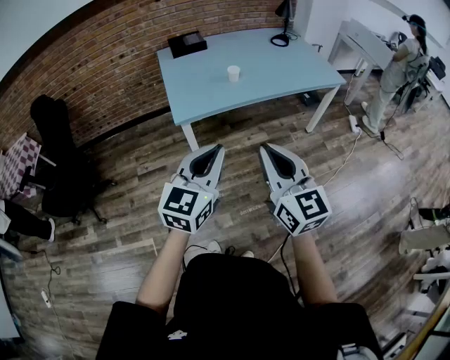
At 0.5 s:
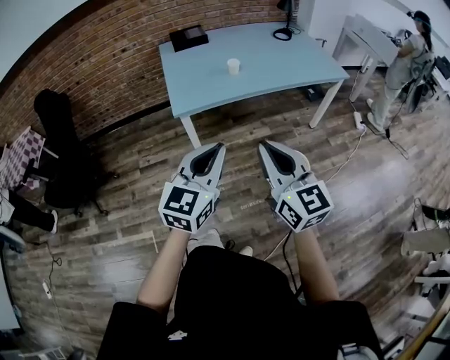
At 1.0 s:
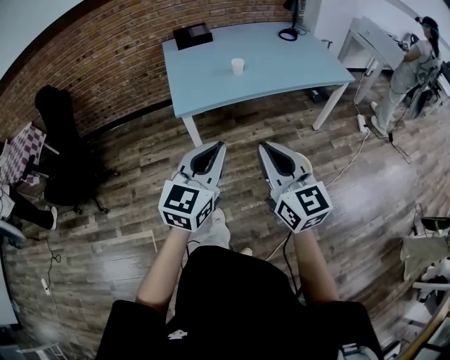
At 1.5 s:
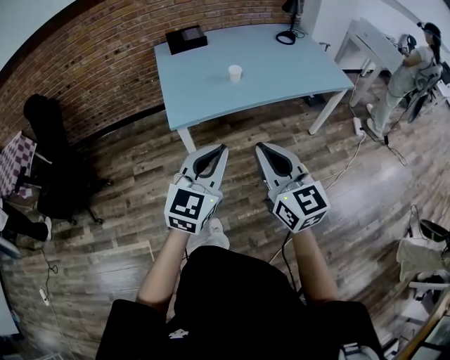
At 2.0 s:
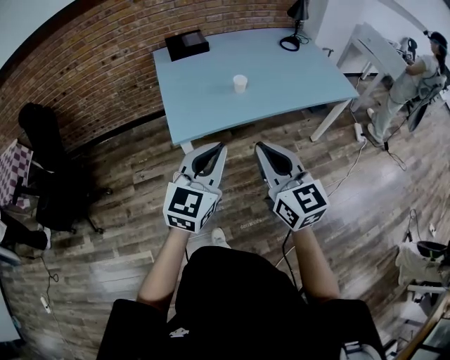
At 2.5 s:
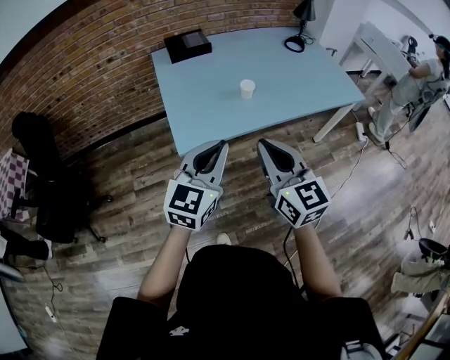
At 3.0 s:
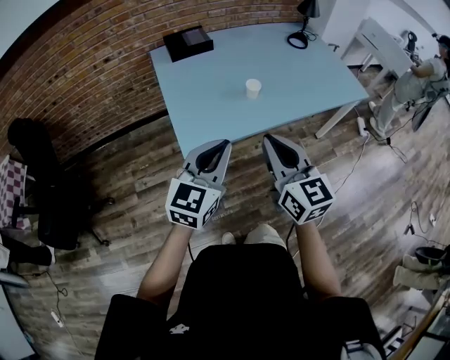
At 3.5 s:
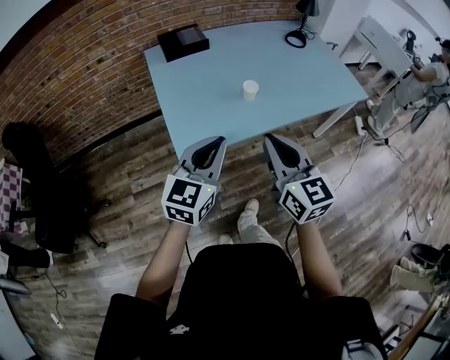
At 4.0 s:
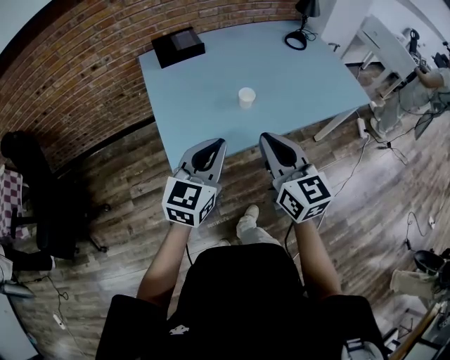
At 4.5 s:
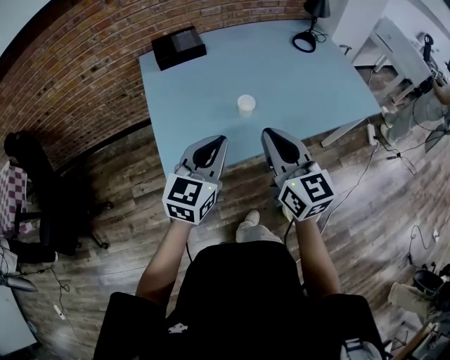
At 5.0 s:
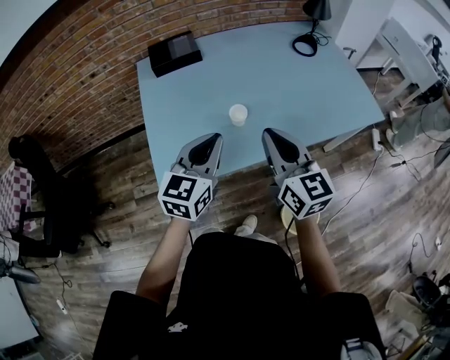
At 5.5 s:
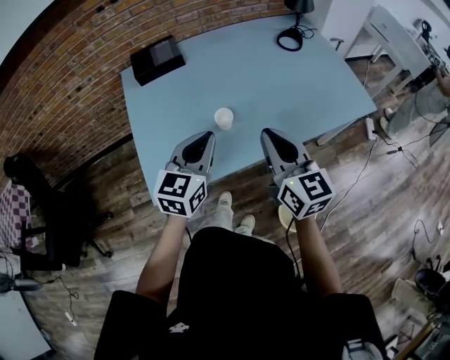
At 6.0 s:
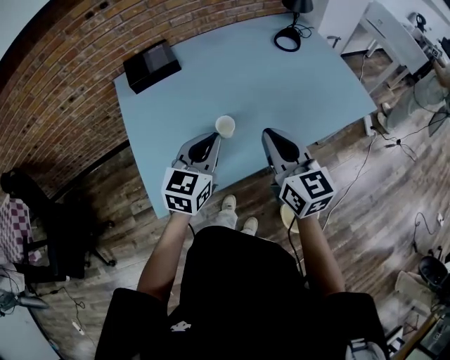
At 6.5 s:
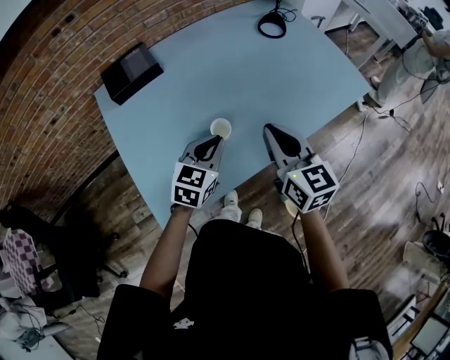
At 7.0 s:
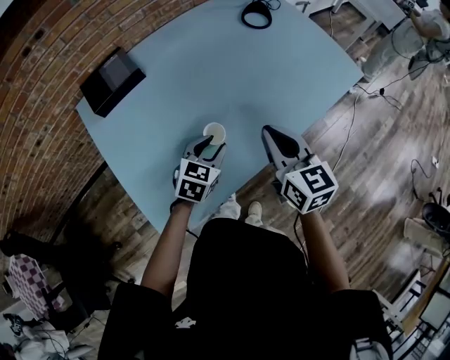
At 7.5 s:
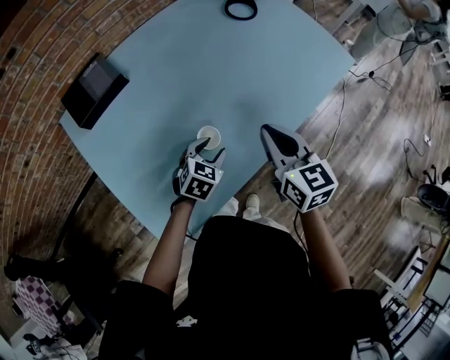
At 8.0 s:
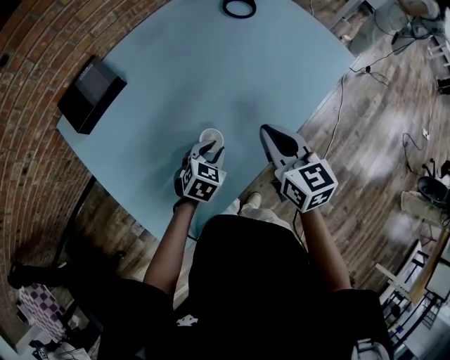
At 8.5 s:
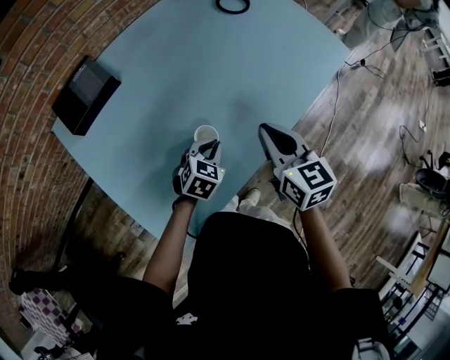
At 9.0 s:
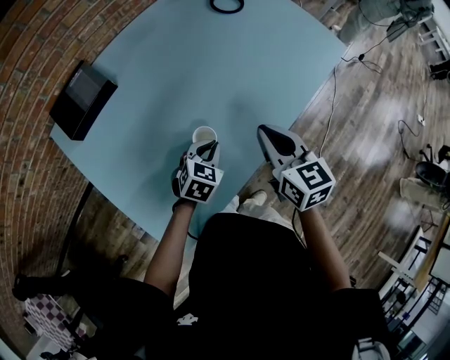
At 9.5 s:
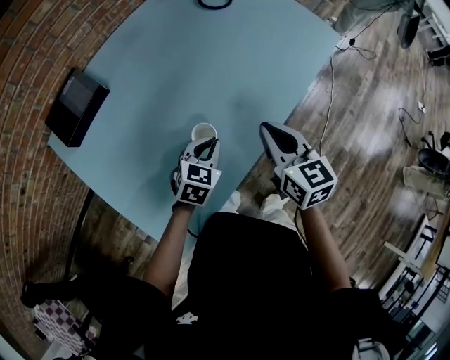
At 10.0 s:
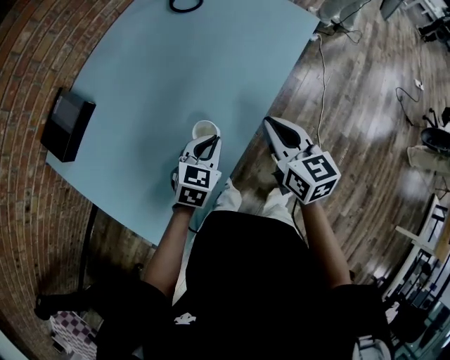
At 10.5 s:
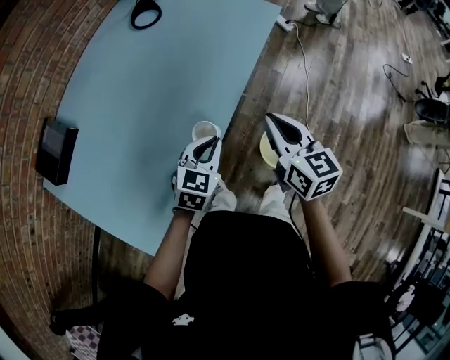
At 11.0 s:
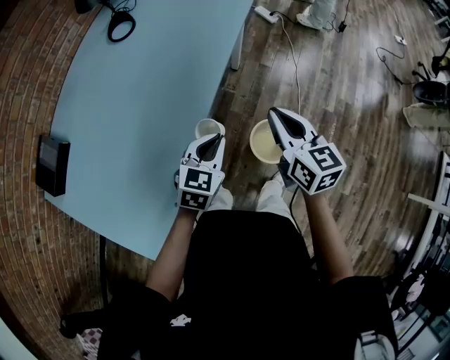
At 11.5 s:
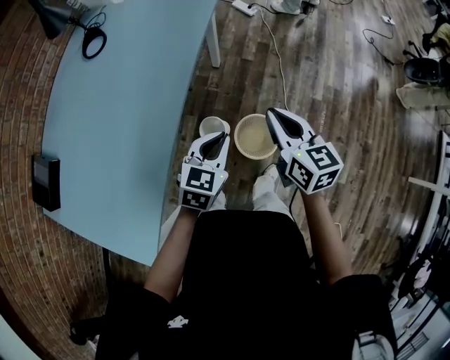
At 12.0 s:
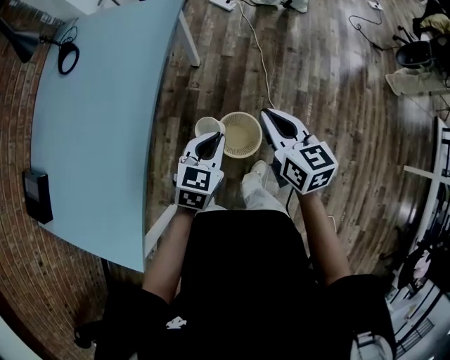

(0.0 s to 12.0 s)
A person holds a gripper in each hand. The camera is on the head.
0.0 s - 2.0 s: Both grippers move forward, some 15 cm.
2.0 s - 4.0 s: Both grippers move forward, some 20 cm.
4.0 s - 6.0 s: The two grippers go about 20 cm forward and to the right.
6.0 s - 8.0 s: The left gripper heads downward and forward, covering about 25 cm, changes its angle by some 40 degrees, and opens; the right gripper is displaced forward and downward by some 15 cm, and changes its angle by about 20 degrees.
8.0 s - 10.0 s: The right gripper moves to the right, some 10 cm; the left gripper heads to the right and upward, covering approximately 10 cm, and closes its fingers.
10.0 s - 12.0 s: Both grippers move to the right, approximately 40 cm. The right gripper turns by some 20 degrees.

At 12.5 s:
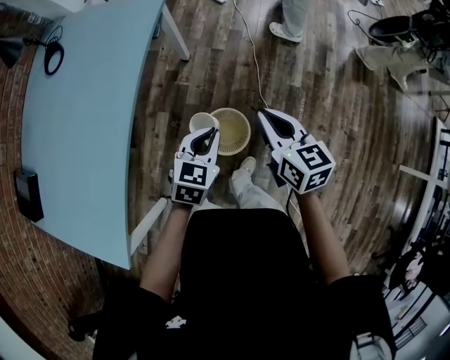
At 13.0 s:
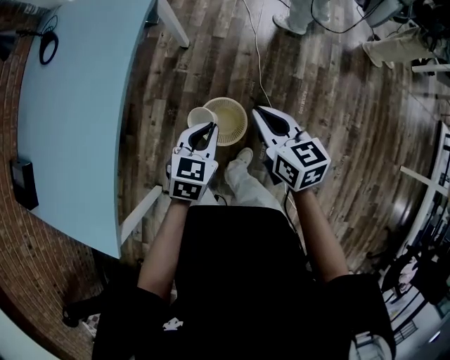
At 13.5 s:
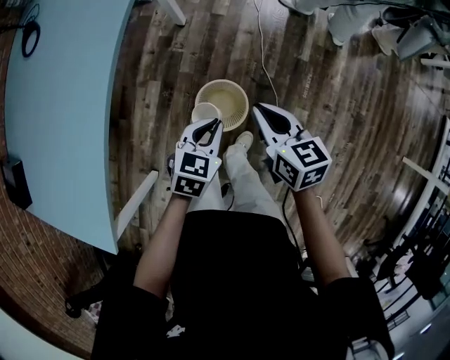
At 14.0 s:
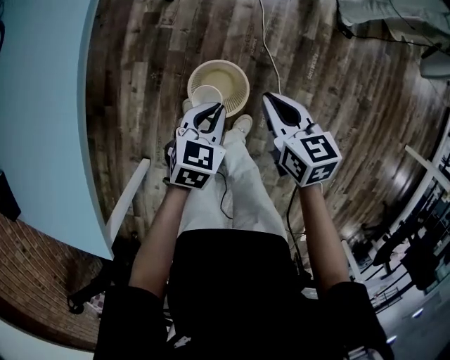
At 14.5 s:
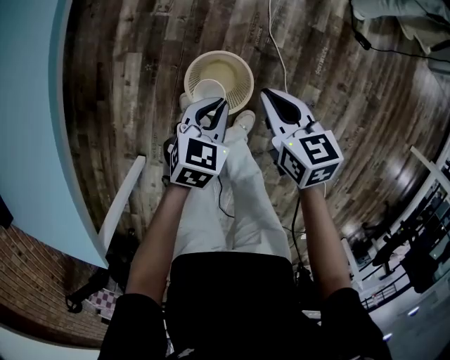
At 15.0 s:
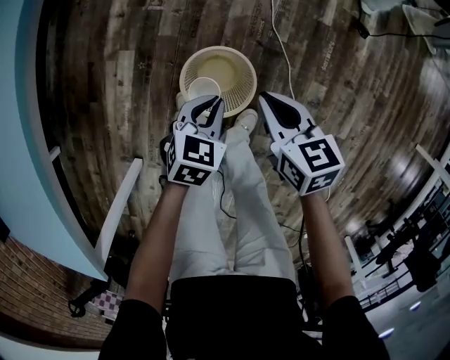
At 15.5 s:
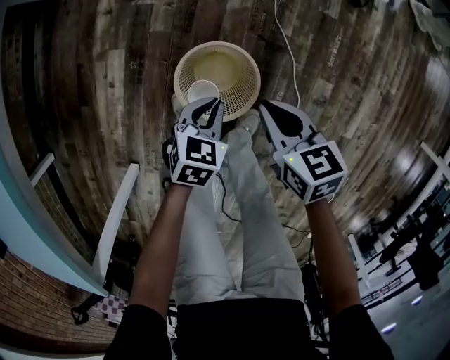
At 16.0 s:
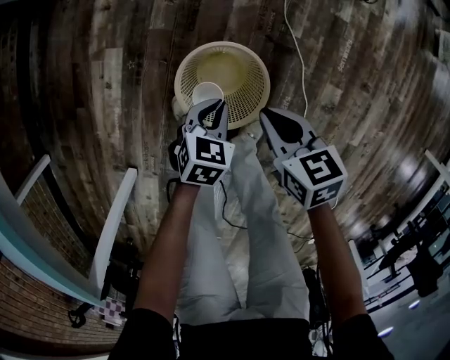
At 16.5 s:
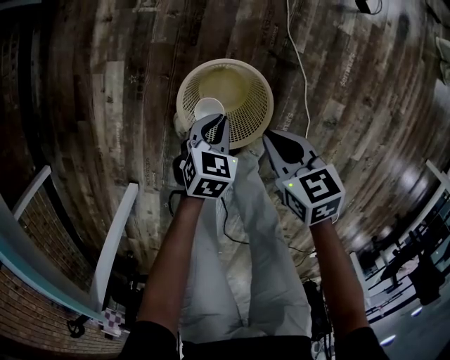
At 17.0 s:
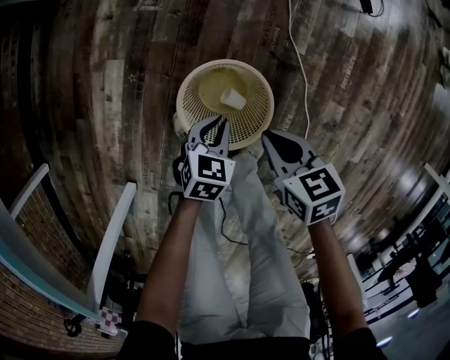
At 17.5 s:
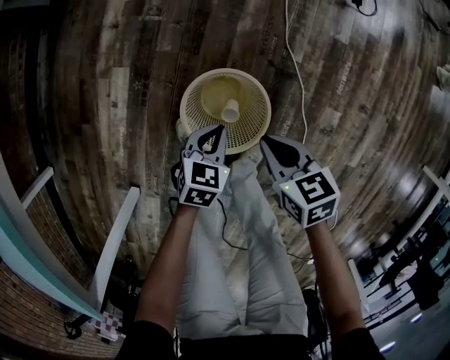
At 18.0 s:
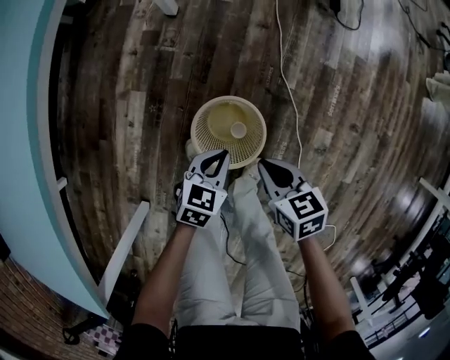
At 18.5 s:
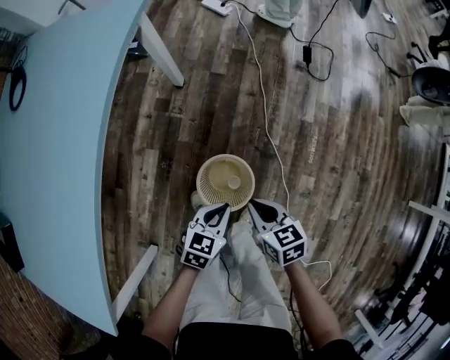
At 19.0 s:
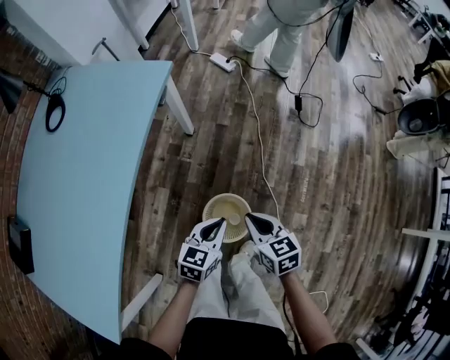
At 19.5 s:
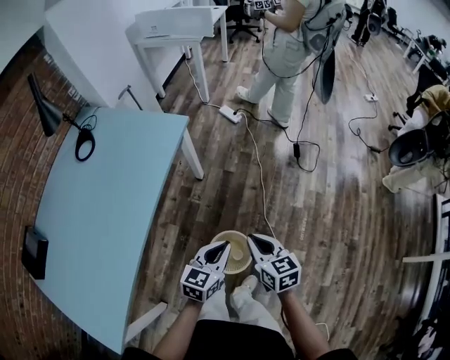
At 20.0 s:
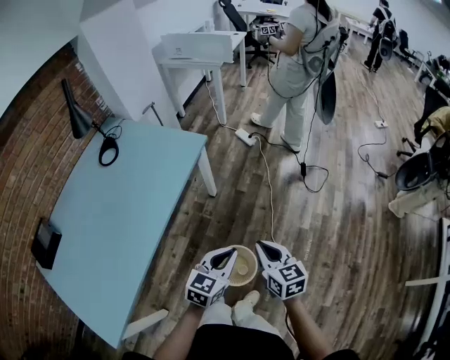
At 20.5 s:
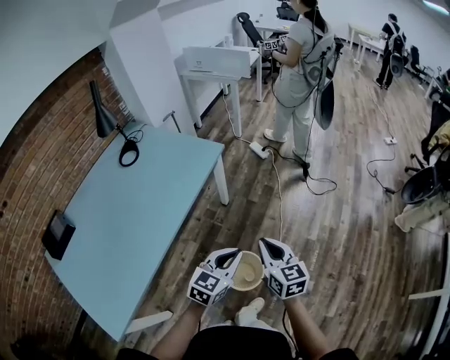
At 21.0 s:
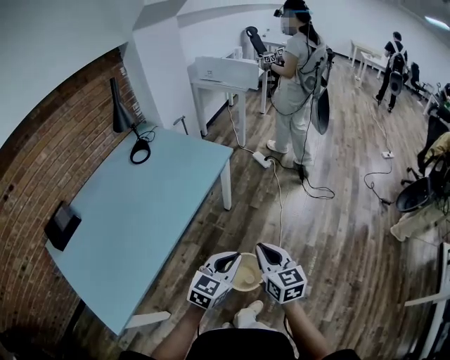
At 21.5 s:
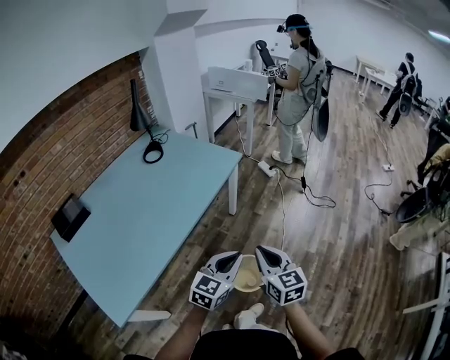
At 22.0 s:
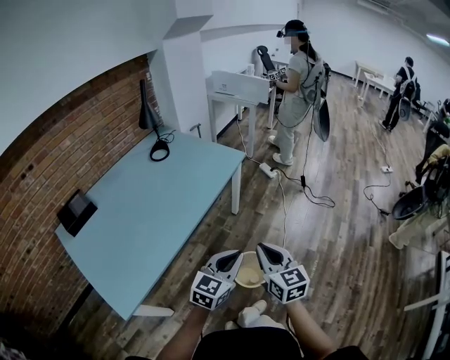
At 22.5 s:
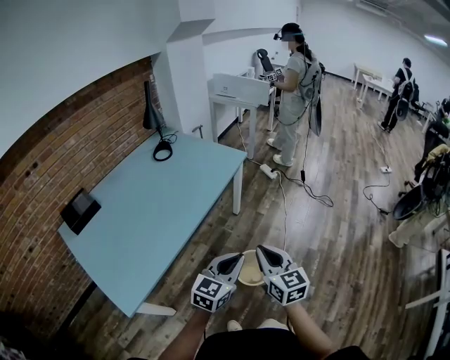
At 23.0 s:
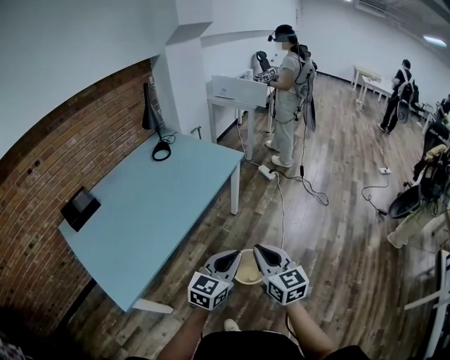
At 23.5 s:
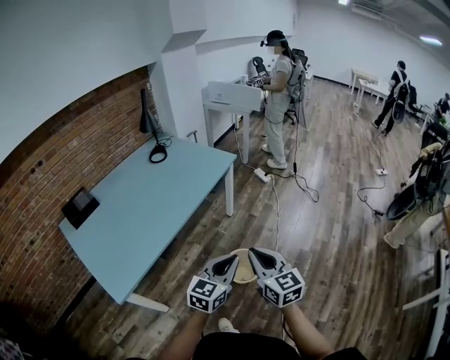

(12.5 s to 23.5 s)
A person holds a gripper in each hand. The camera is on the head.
12.5 s - 14.5 s: The grippers both shift downward by roughly 30 cm.
14.5 s - 16.0 s: The grippers both shift downward by roughly 20 cm.
16.0 s - 18.0 s: The left gripper travels upward by some 10 cm, while the right gripper goes some 5 cm upward.
18.0 s - 20.0 s: Both grippers move upward, roughly 40 cm. The left gripper turns by about 30 degrees, while the right gripper rotates roughly 30 degrees.
20.0 s - 21.5 s: Both grippers move backward, upward and to the left, roughly 20 cm.
21.5 s - 23.5 s: Both grippers travel together backward, approximately 15 cm.

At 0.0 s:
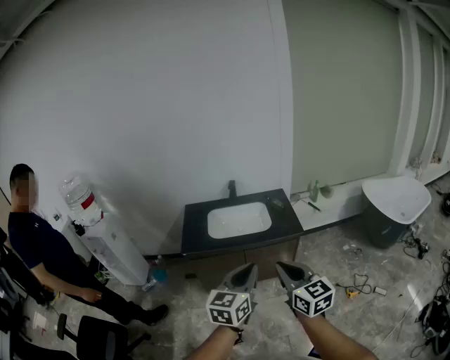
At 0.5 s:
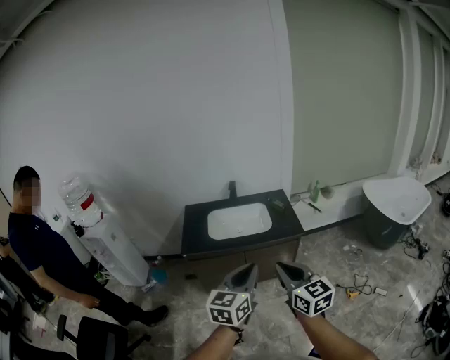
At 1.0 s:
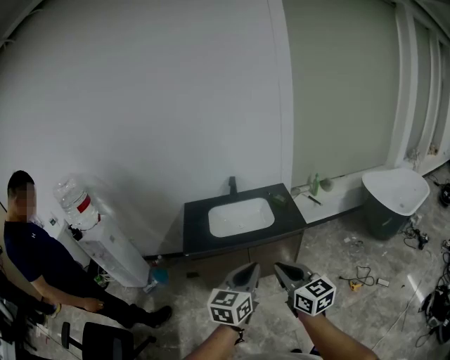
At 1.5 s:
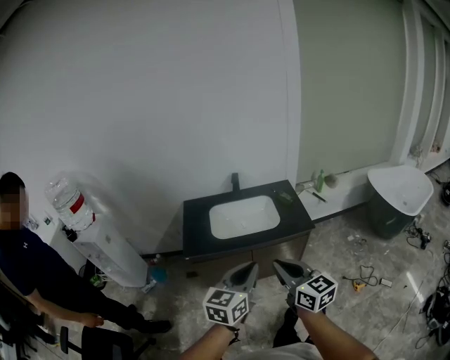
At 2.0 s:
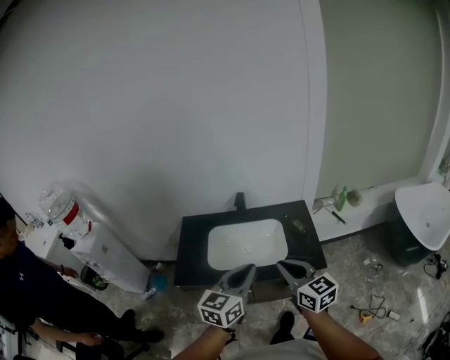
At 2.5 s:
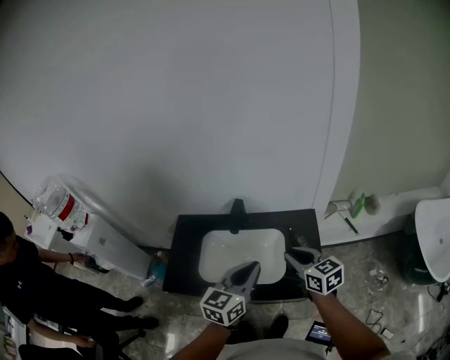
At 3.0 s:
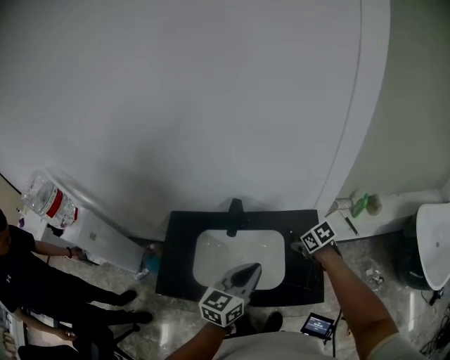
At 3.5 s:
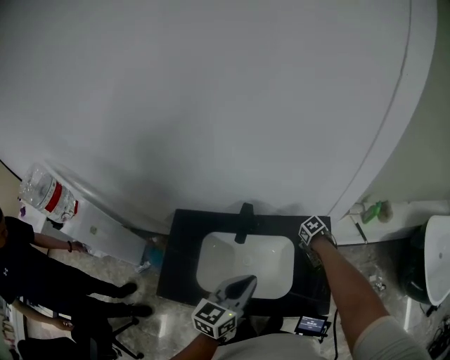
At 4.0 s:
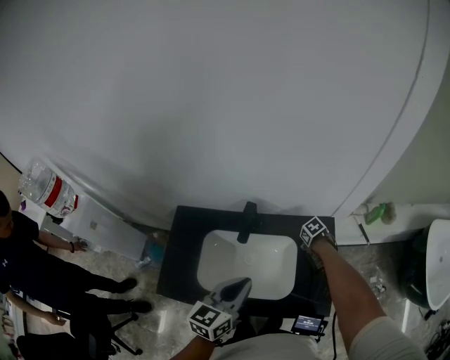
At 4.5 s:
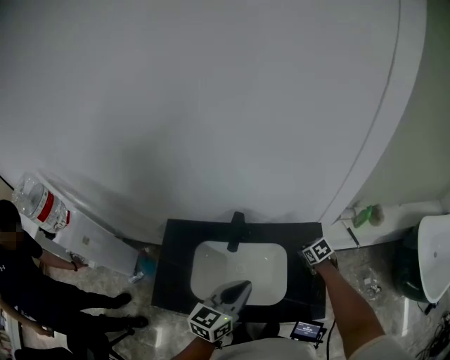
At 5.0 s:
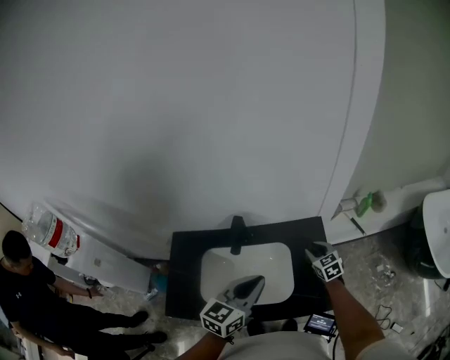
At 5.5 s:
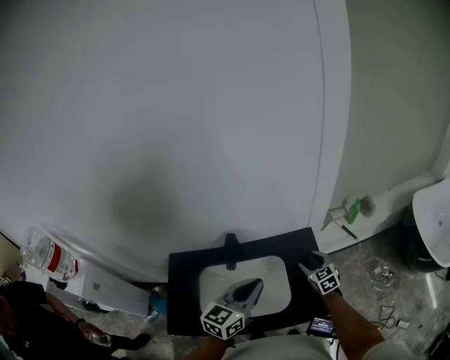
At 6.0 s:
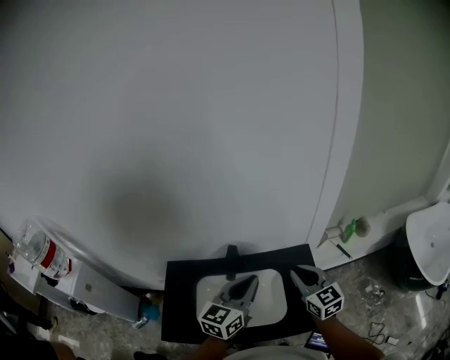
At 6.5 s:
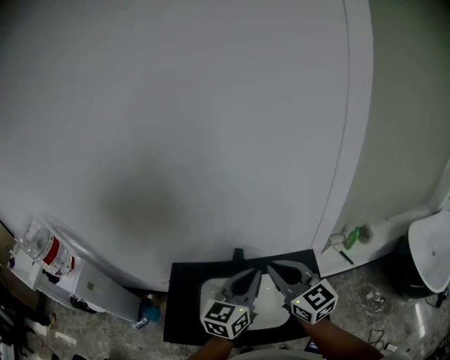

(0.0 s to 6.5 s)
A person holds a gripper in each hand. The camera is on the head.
0.0 s - 2.0 s: Both grippers travel together forward, approximately 35 cm.
2.0 s - 4.5 s: The left gripper moves approximately 30 cm. Meanwhile the right gripper shifts by roughly 60 cm, tilts its fingers about 50 degrees downward, and opens up.
4.5 s - 6.5 s: The left gripper goes about 15 cm upward, while the right gripper travels upward by approximately 40 cm, points its fingers roughly 60 degrees further upward, and closes its fingers.
